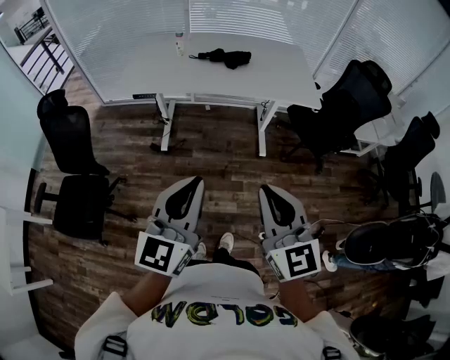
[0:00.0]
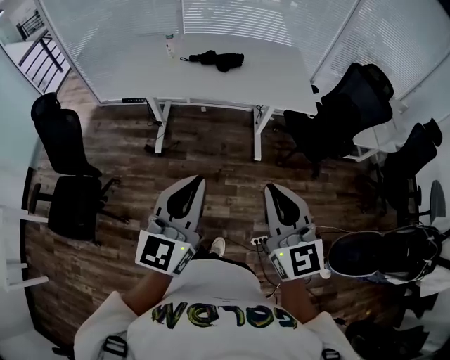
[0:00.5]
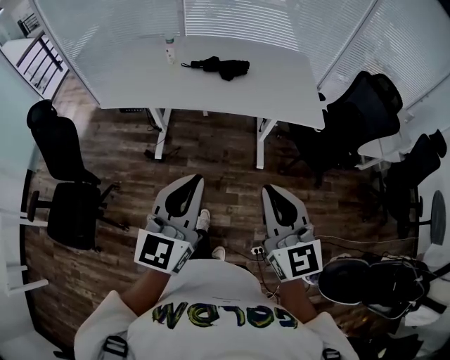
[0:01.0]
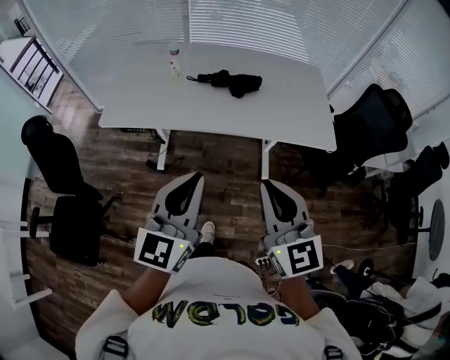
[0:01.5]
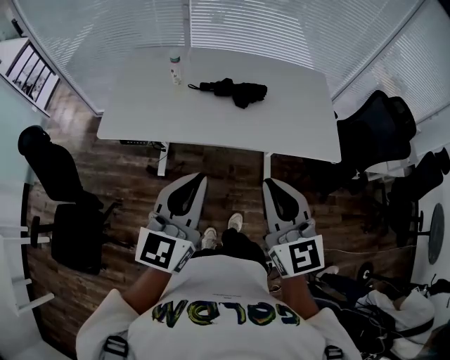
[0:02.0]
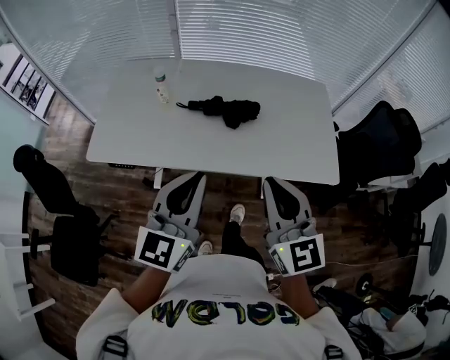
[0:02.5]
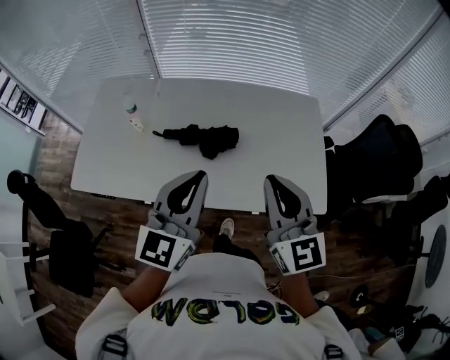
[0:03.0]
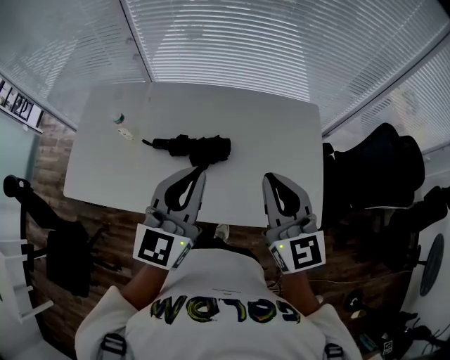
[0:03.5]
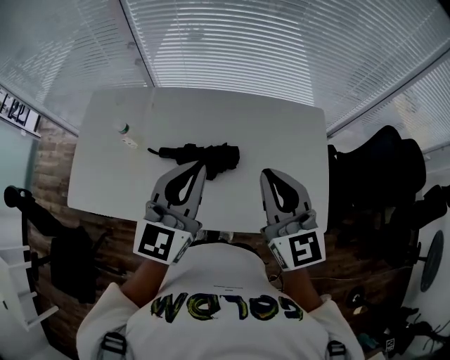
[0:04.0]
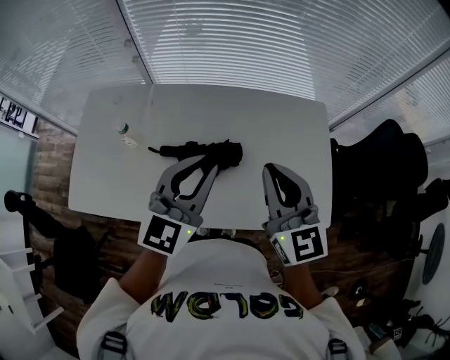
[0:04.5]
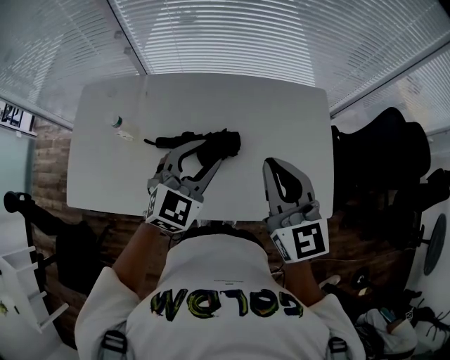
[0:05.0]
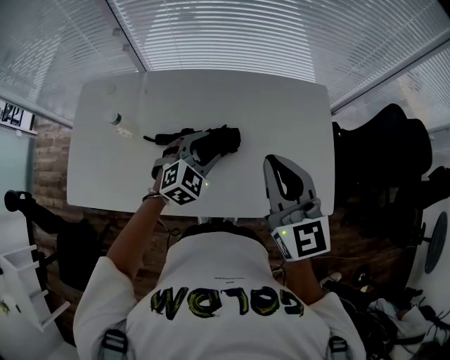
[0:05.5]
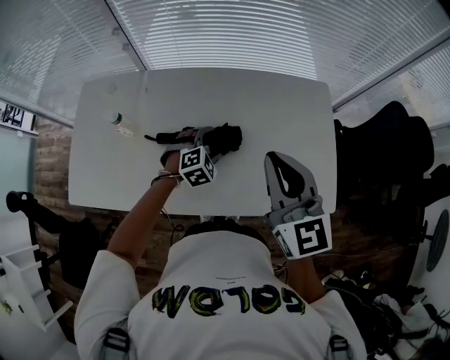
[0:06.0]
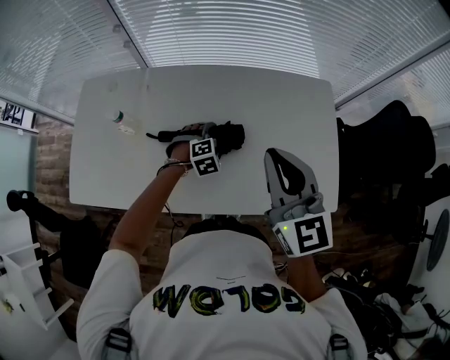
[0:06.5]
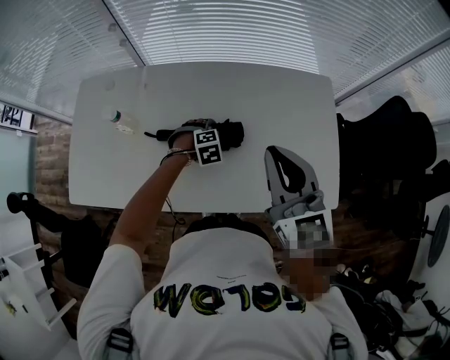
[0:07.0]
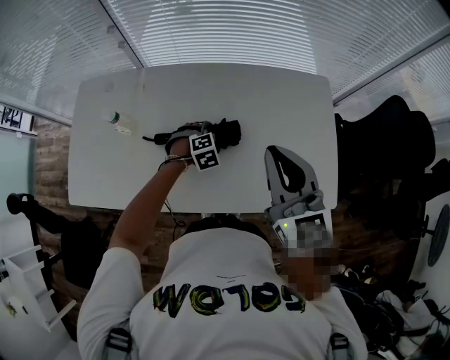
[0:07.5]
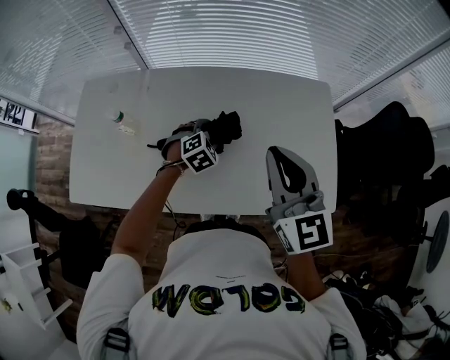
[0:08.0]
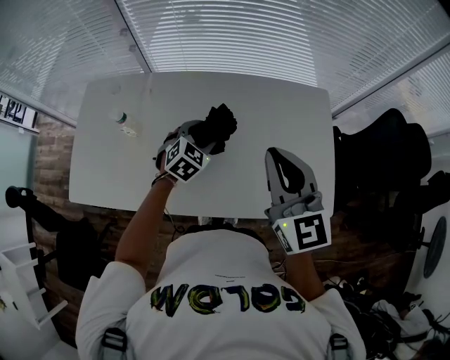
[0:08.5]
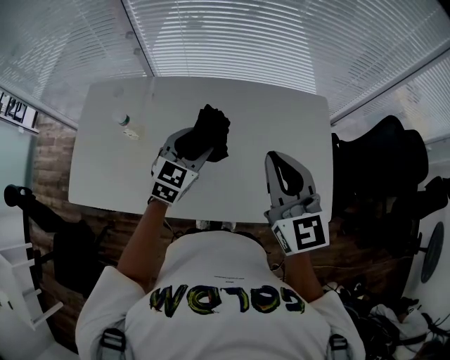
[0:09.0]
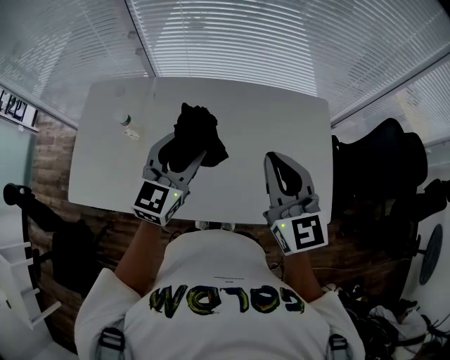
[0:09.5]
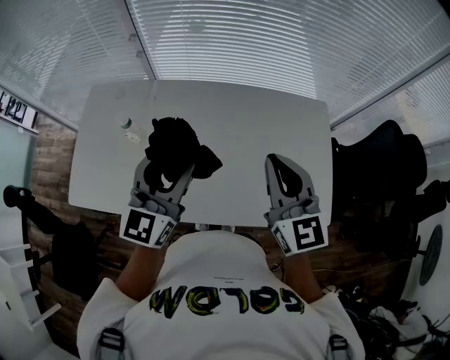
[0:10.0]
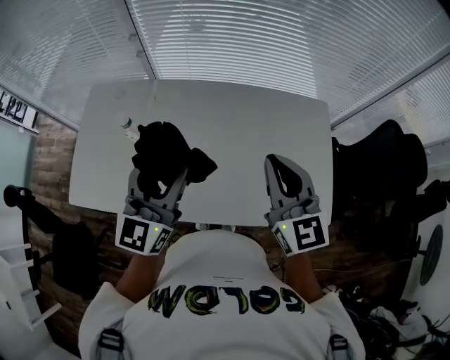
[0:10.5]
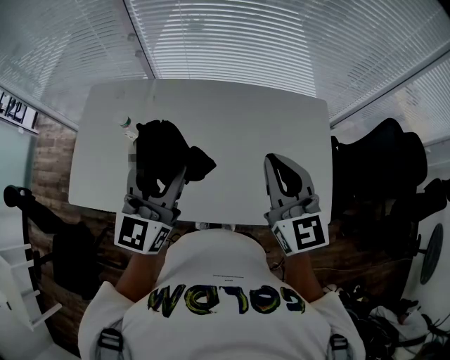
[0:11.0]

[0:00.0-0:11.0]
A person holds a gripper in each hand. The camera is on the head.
0:00.0 to 0:02.0: The two grippers go roughly 35 cm forward.
0:02.0 to 0:03.5: Both grippers are carried forward and to the right, about 40 cm.
0:03.5 to 0:05.5: The left gripper moves downward and forward, approximately 25 cm, points its fingers about 40 degrees further downward, and opens; the right gripper travels forward by some 5 cm.
0:05.5 to 0:07.5: The left gripper travels downward by about 15 cm, and rotates about 30 degrees.
0:07.5 to 0:09.0: The left gripper is displaced upward by some 20 cm, and tilts its fingers approximately 40 degrees upward.
0:09.0 to 0:11.0: The left gripper moves upward, backward and to the left, about 20 cm, and turns by roughly 30 degrees.

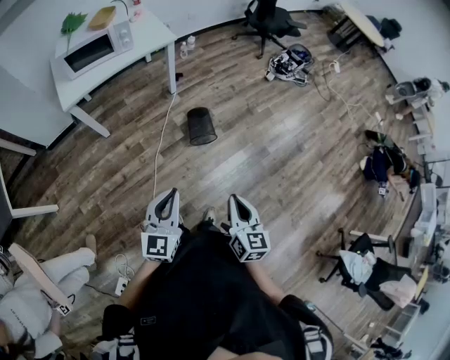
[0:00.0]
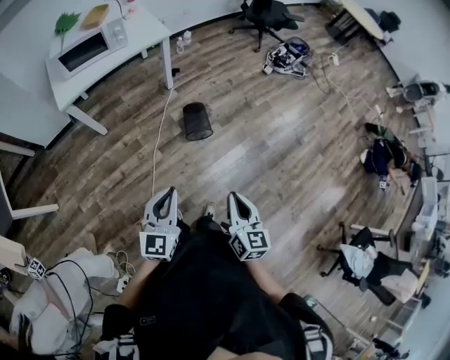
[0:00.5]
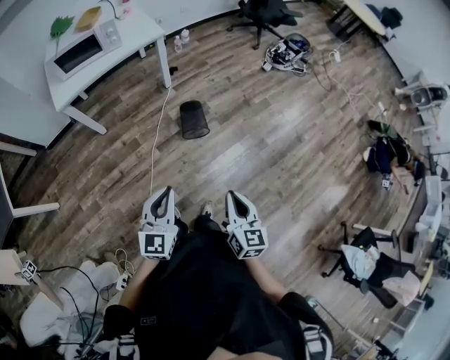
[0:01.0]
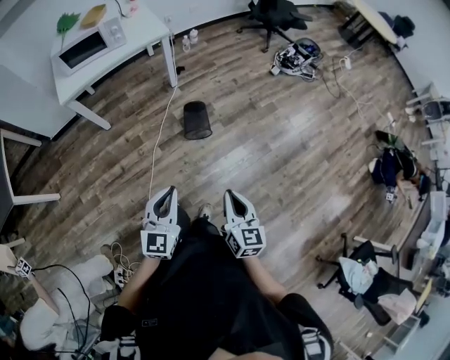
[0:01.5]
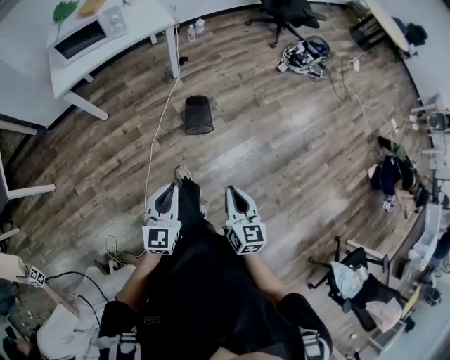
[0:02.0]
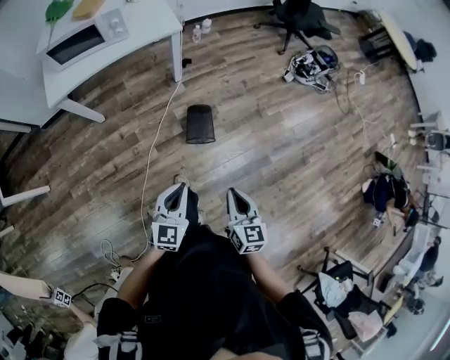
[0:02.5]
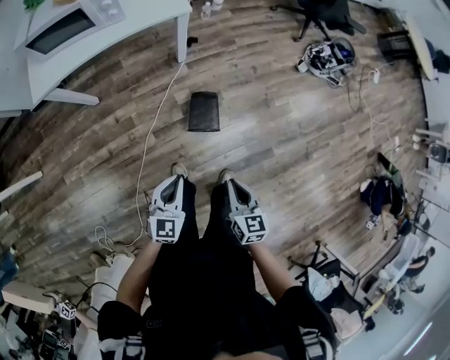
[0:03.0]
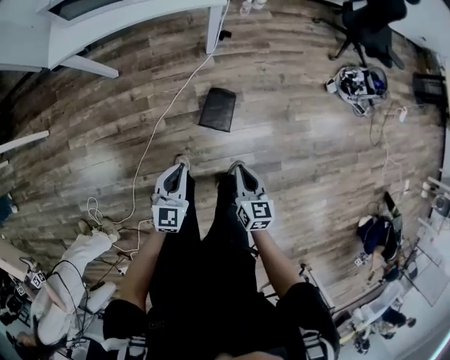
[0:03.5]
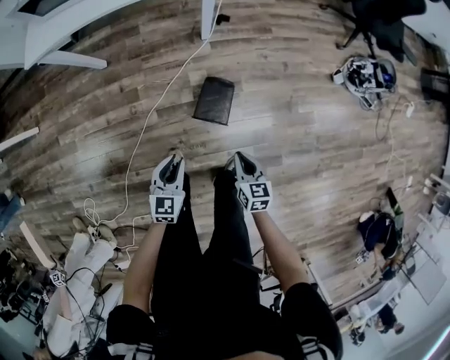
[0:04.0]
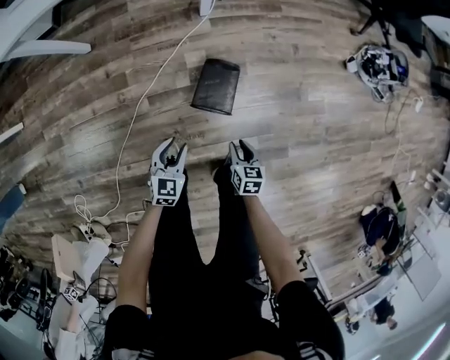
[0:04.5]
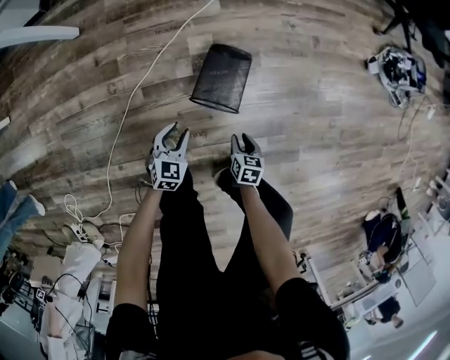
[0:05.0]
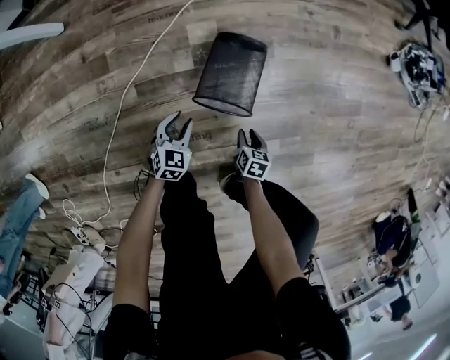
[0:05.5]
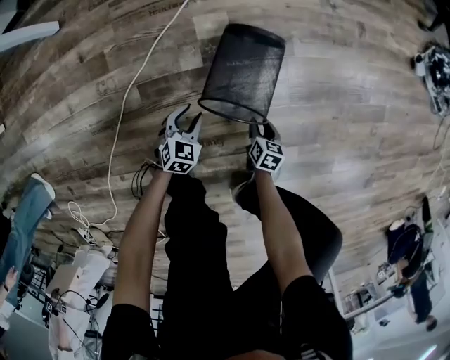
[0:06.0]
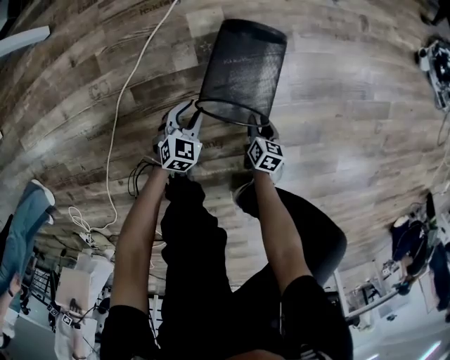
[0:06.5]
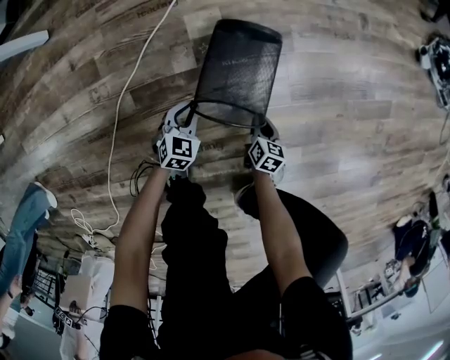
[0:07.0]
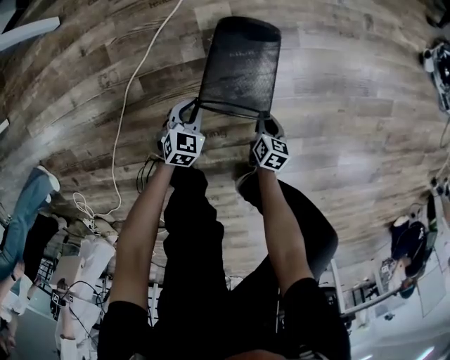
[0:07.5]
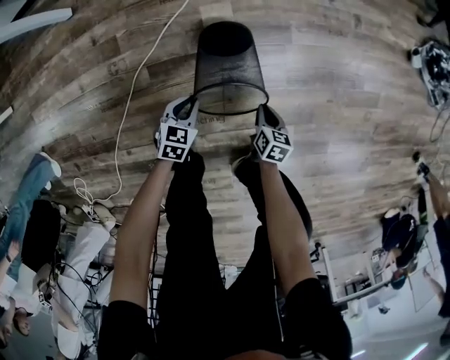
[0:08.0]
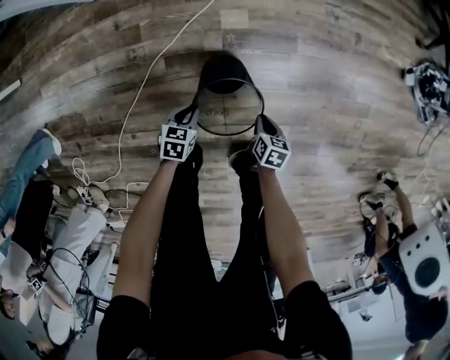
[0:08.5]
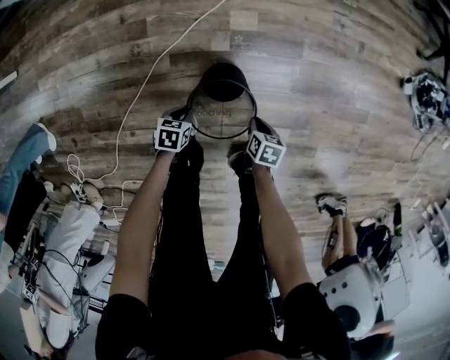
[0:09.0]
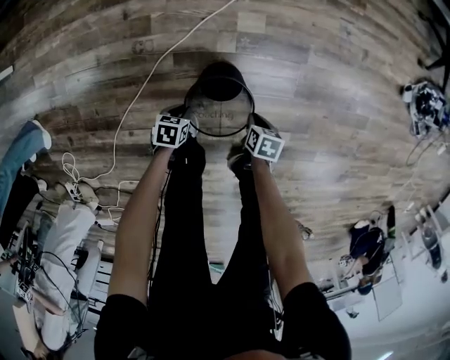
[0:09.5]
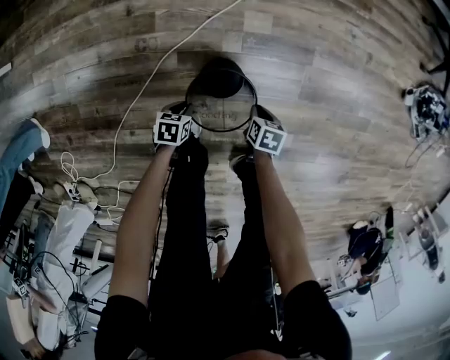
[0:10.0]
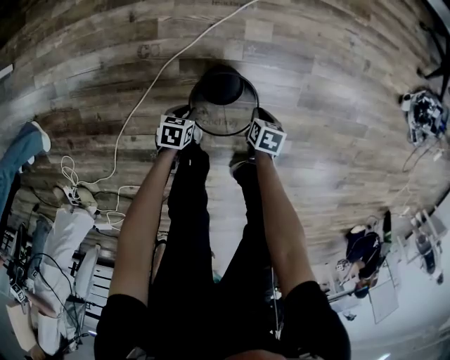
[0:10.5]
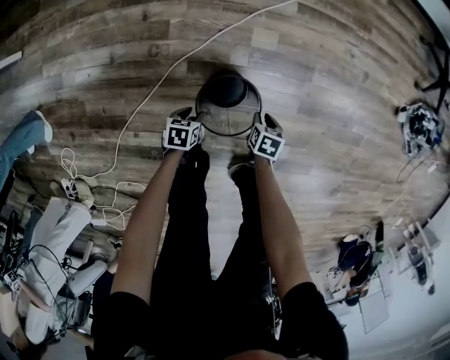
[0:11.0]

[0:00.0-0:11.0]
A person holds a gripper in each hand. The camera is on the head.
0:00.0 to 0:02.0: The right gripper is displaced to the right, forward and downward by about 10 cm; the left gripper moves to the right, downward and forward, about 10 cm.
0:02.0 to 0:03.5: Both grippers travel together forward and downward, roughly 30 cm. The right gripper swivels approximately 20 degrees.
0:03.5 to 0:05.5: Both grippers travel together downward, approximately 60 cm. The left gripper turns by approximately 30 degrees, and opens; the right gripper tips its fingers downward by some 30 degrees, and opens.
0:05.5 to 0:07.5: The grippers both shift downward by approximately 5 cm. The left gripper closes. Meanwhile the right gripper closes up.
0:07.5 to 0:09.0: The left gripper shifts some 15 cm upward, to the left and backward, and turns by about 40 degrees, while the right gripper heads upward and to the left, covering about 20 cm, and turns by about 20 degrees.
0:09.0 to 0:11.0: The right gripper ends up about 10 cm from where it was. Meanwhile the left gripper opens up.

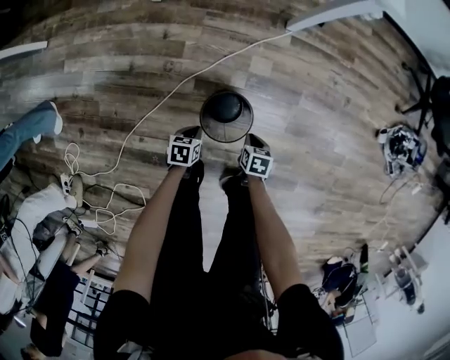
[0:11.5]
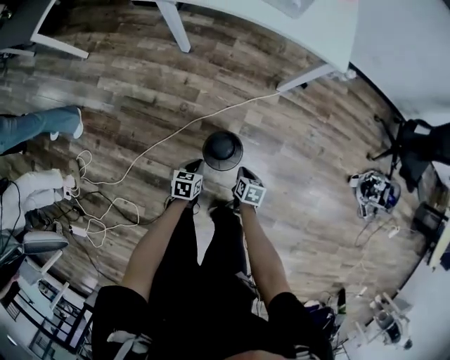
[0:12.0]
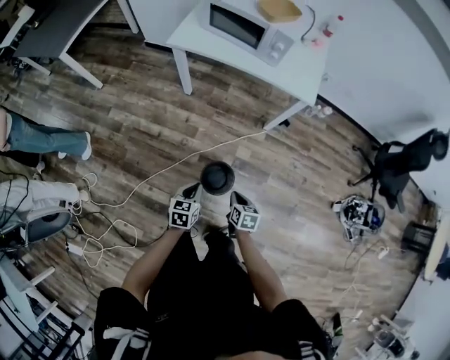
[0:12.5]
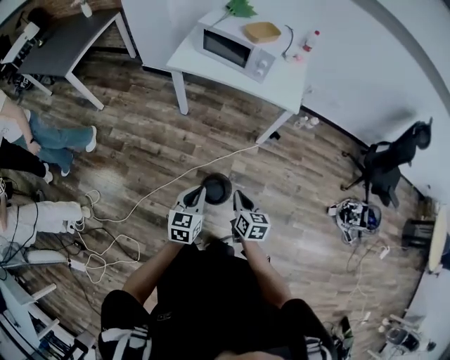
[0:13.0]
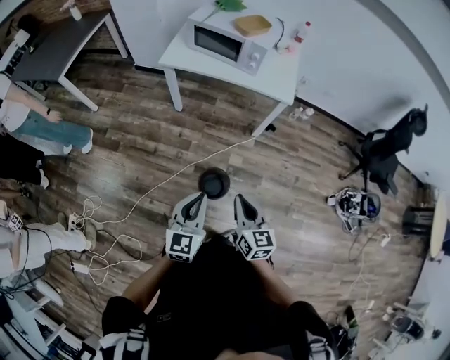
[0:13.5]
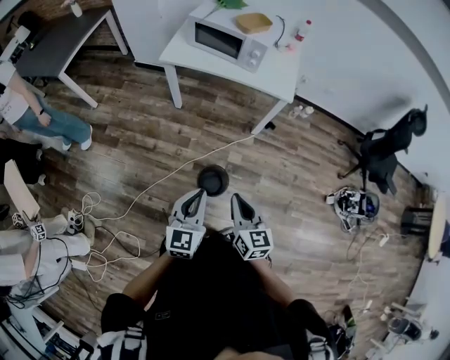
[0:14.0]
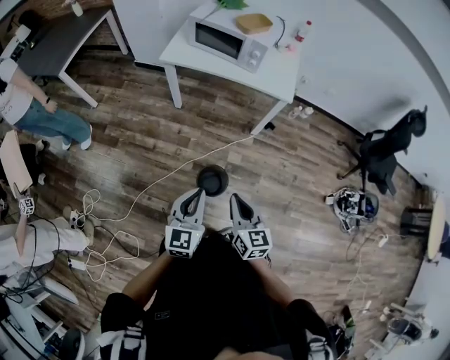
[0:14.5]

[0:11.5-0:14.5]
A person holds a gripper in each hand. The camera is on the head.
0:11.5 to 0:13.0: The grippers both shift upward by some 60 cm. The left gripper angles its fingers upward, by roughly 40 degrees. Meanwhile the right gripper angles its fingers upward, by some 40 degrees.
0:13.0 to 0:14.5: The left gripper heads upward, covering roughly 10 cm, while the right gripper travels upward and backward by roughly 15 cm.

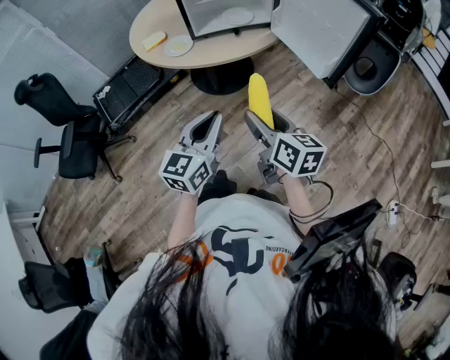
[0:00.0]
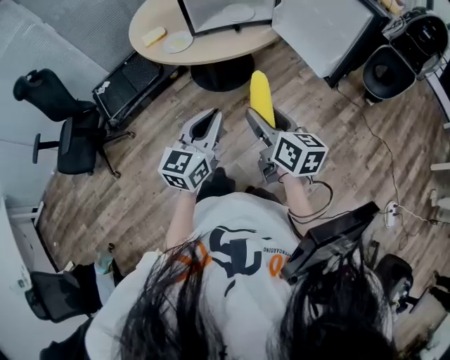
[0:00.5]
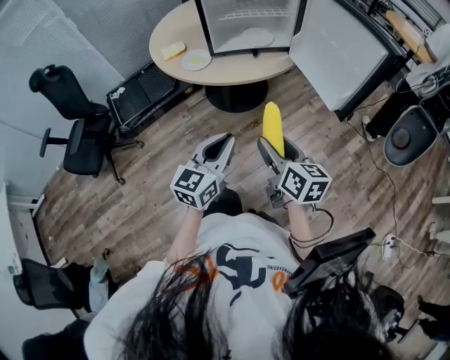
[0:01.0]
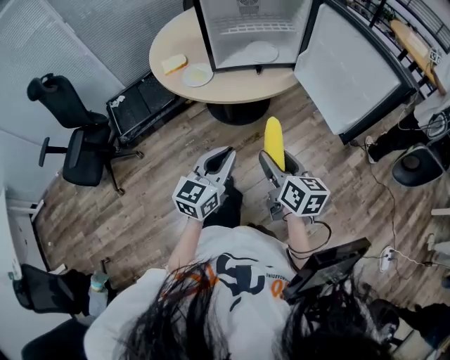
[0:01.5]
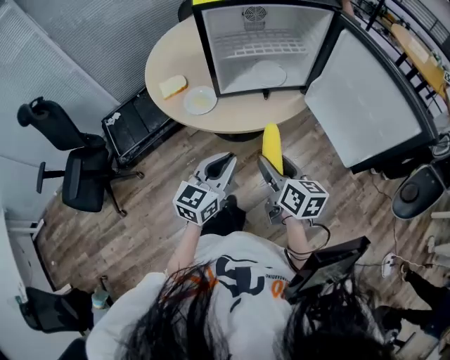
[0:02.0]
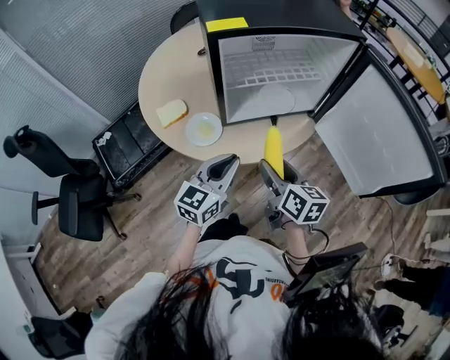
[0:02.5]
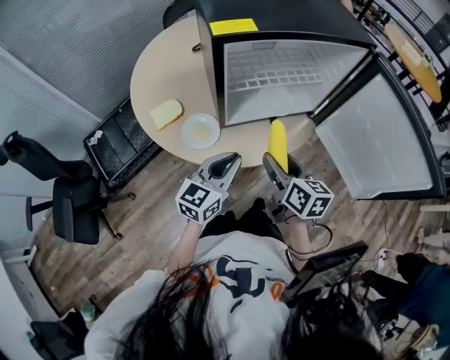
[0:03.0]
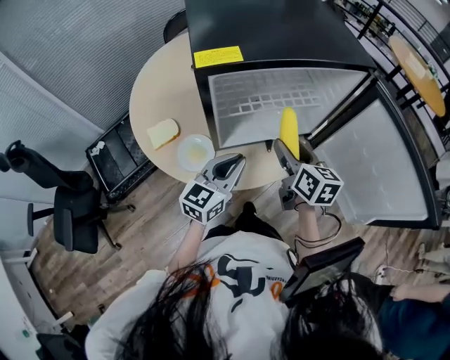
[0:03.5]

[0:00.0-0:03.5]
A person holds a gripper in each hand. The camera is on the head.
0:00.0 to 0:02.0: The two grippers go some 20 cm forward.
0:02.0 to 0:03.5: The two grippers go some 25 cm forward.
